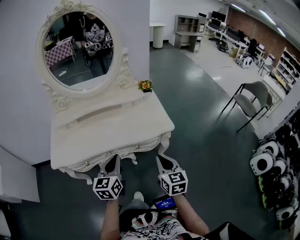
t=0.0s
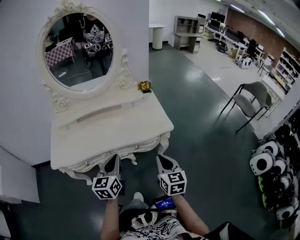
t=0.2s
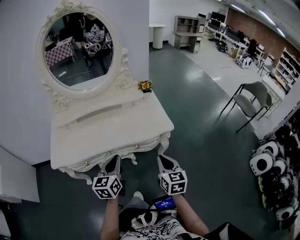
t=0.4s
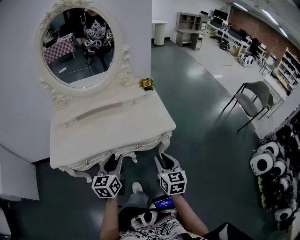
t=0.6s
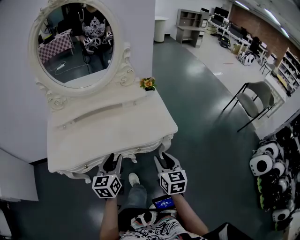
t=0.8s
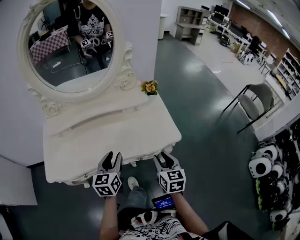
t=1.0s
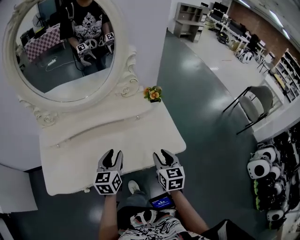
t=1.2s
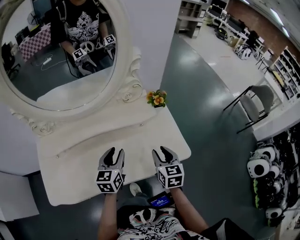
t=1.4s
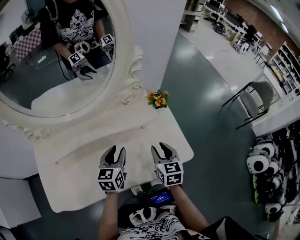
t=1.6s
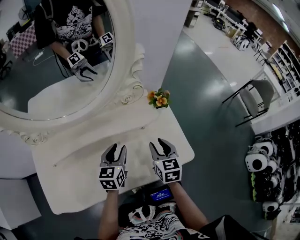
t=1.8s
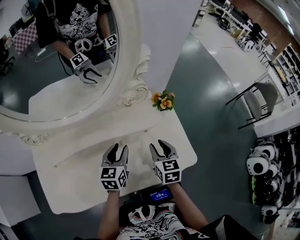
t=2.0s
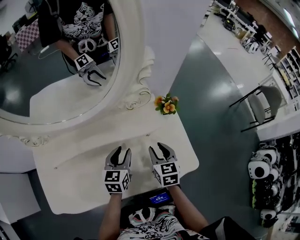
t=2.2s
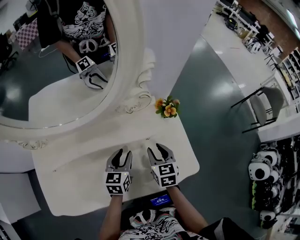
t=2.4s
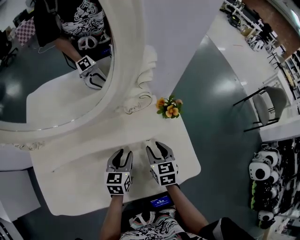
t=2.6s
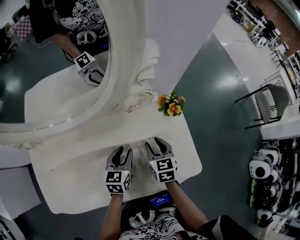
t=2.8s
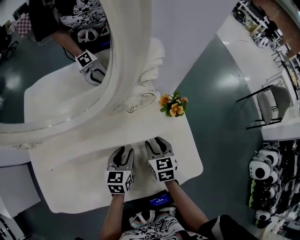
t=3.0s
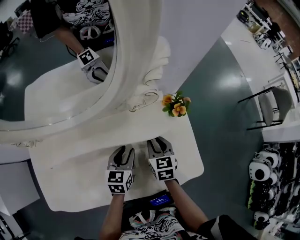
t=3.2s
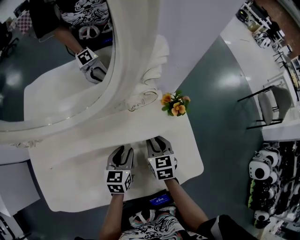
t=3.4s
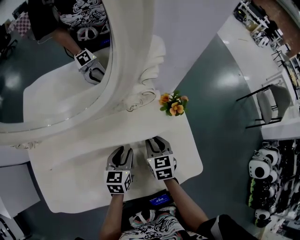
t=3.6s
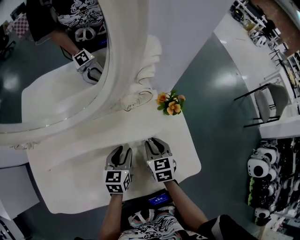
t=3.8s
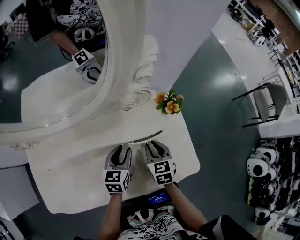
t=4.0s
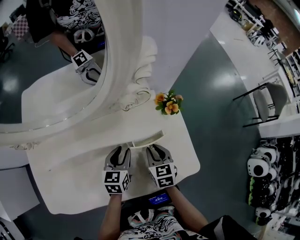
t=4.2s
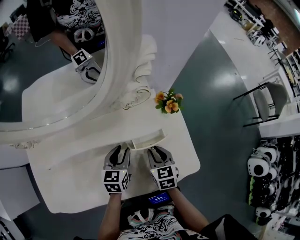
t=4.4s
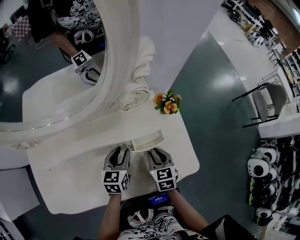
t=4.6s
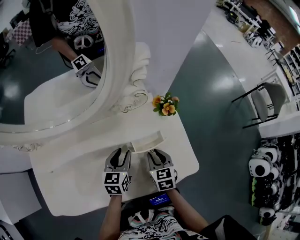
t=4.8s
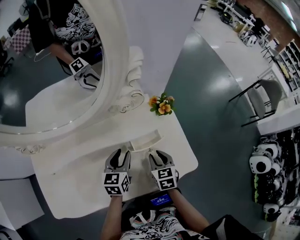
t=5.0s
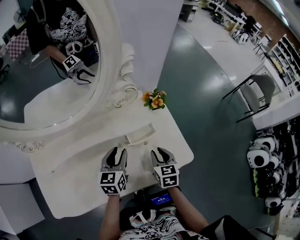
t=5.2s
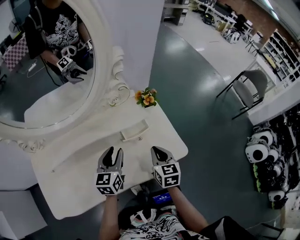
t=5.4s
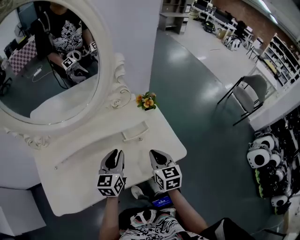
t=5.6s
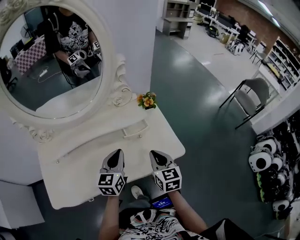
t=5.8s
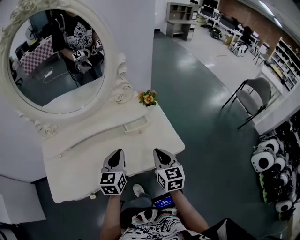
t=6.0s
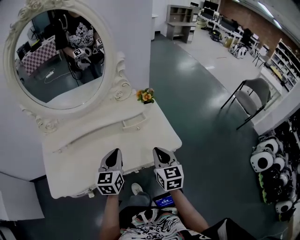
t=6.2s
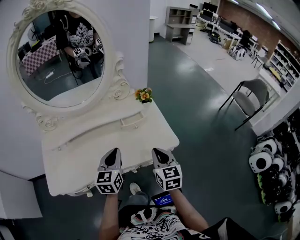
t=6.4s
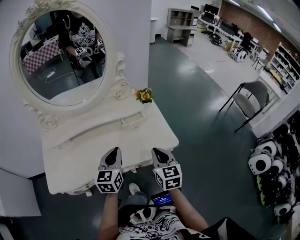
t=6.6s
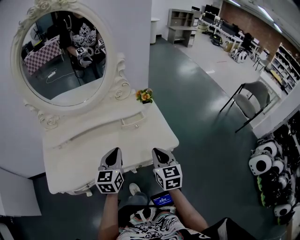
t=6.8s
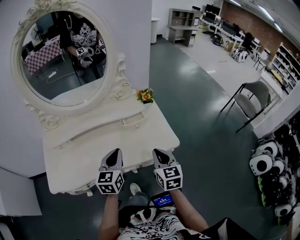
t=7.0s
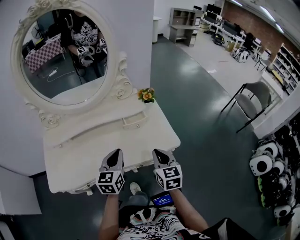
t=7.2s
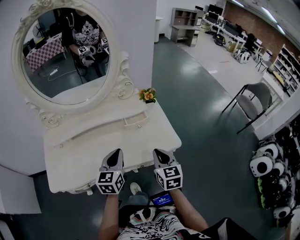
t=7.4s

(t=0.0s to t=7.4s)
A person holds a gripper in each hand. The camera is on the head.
t=0.0s - t=1.4s: Both grippers move forward, about 30 cm. The left gripper opens its fingers, while the right gripper opens.
t=1.4s - t=3.0s: Both grippers move forward and downward, roughly 20 cm.
t=3.0s - t=4.4s: The right gripper heads backward, covering about 5 cm.
t=4.4s - t=6.0s: Both grippers move upward and backward, roughly 25 cm. The right gripper swivels approximately 20 degrees, and closes its fingers; the left gripper closes its fingers.
t=6.0s - t=7.4s: The left gripper is displaced backward by some 5 cm.

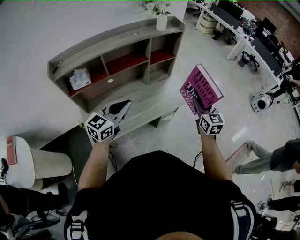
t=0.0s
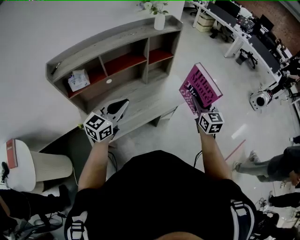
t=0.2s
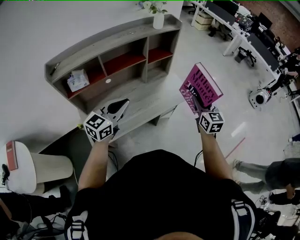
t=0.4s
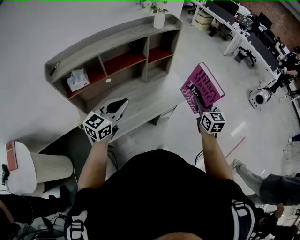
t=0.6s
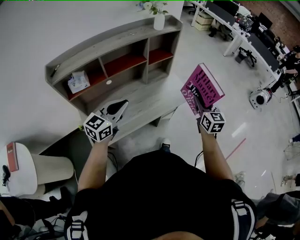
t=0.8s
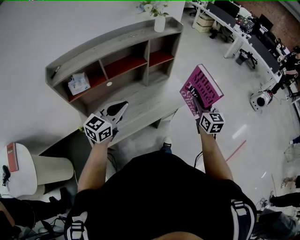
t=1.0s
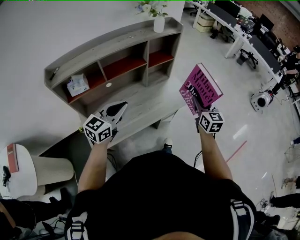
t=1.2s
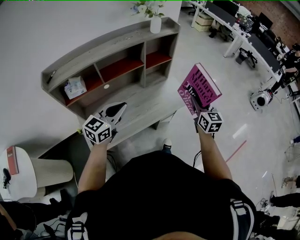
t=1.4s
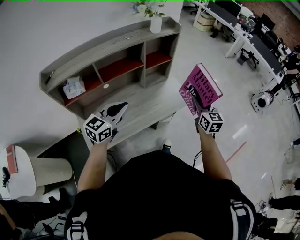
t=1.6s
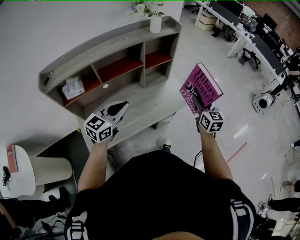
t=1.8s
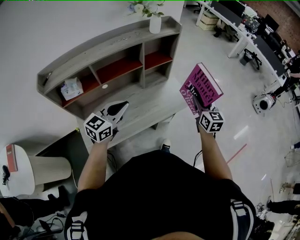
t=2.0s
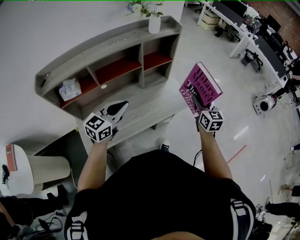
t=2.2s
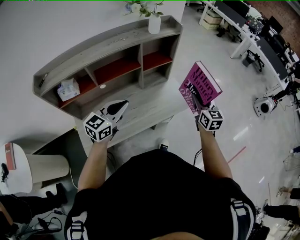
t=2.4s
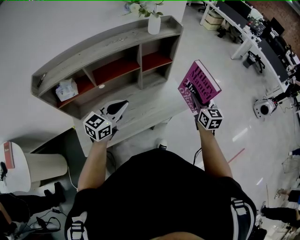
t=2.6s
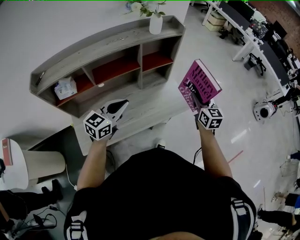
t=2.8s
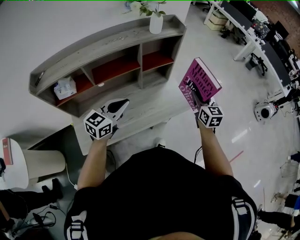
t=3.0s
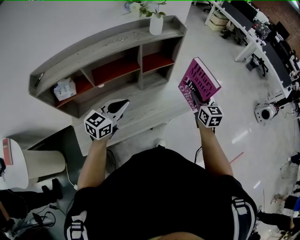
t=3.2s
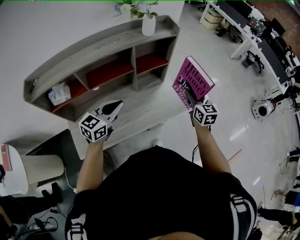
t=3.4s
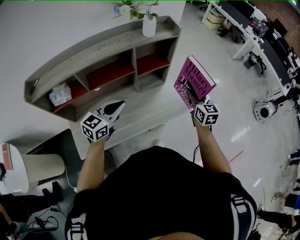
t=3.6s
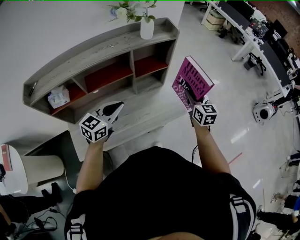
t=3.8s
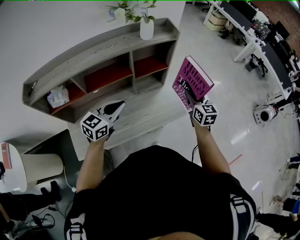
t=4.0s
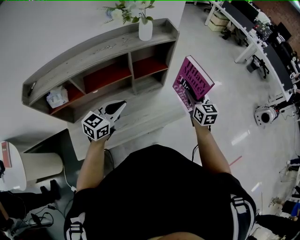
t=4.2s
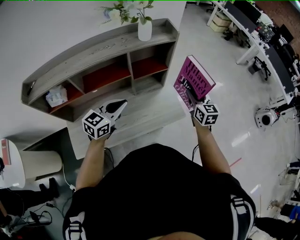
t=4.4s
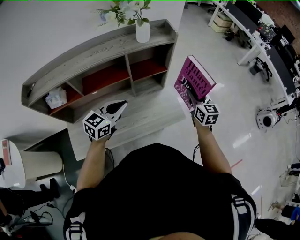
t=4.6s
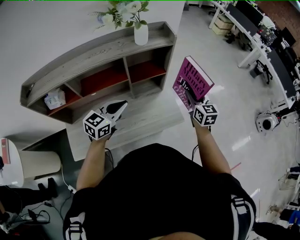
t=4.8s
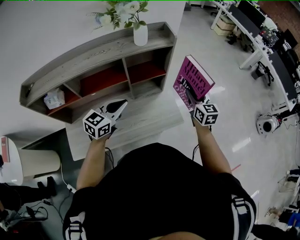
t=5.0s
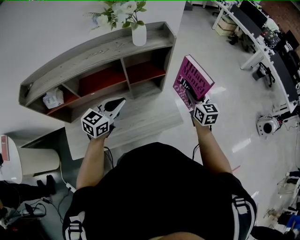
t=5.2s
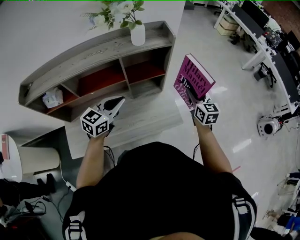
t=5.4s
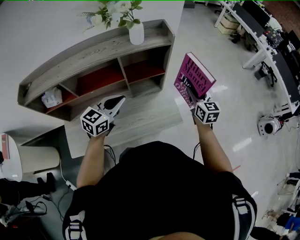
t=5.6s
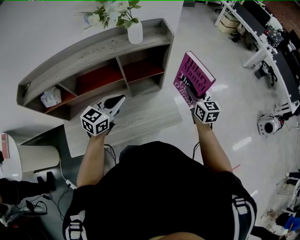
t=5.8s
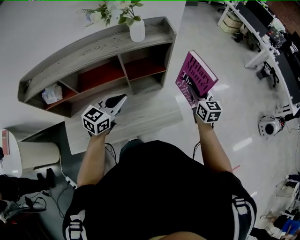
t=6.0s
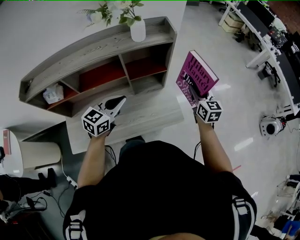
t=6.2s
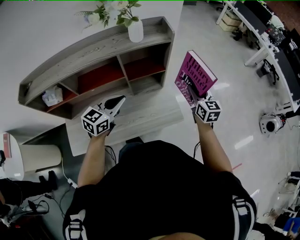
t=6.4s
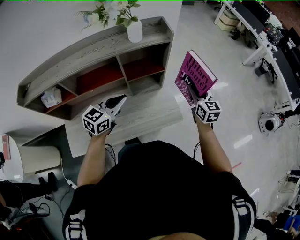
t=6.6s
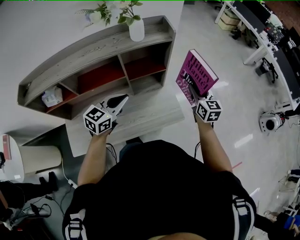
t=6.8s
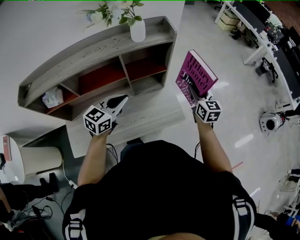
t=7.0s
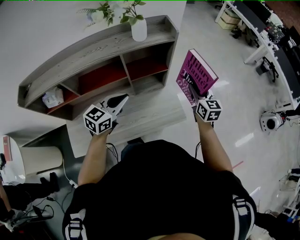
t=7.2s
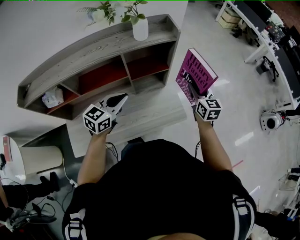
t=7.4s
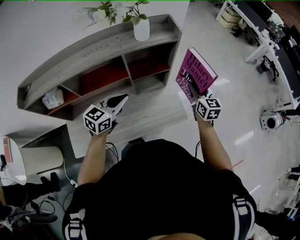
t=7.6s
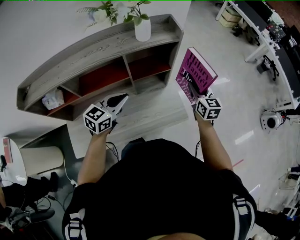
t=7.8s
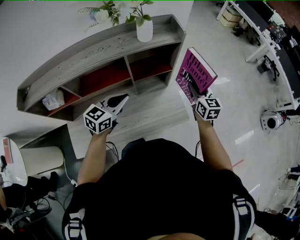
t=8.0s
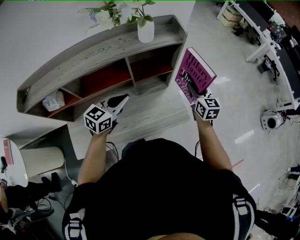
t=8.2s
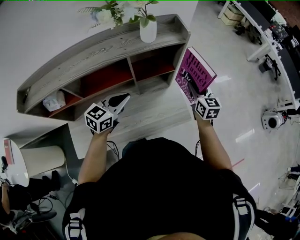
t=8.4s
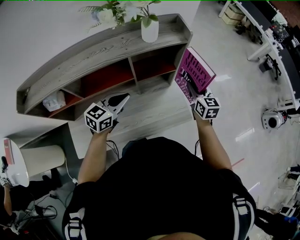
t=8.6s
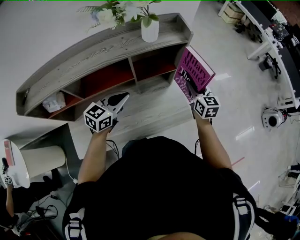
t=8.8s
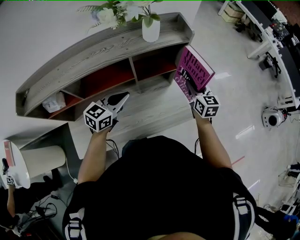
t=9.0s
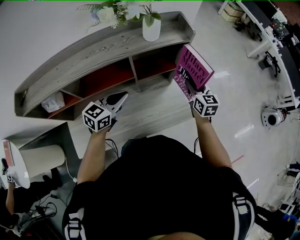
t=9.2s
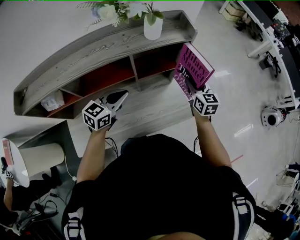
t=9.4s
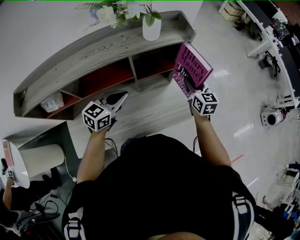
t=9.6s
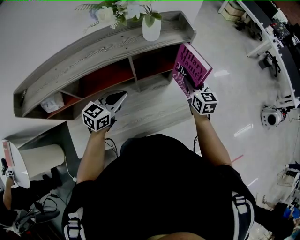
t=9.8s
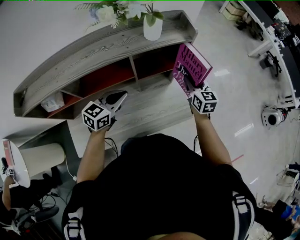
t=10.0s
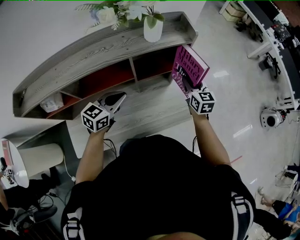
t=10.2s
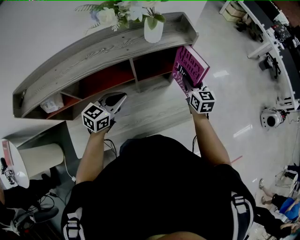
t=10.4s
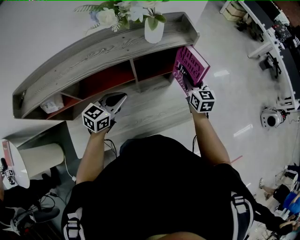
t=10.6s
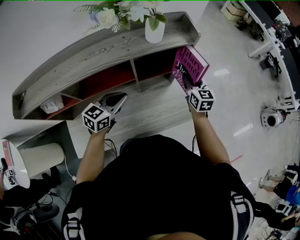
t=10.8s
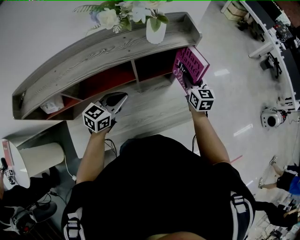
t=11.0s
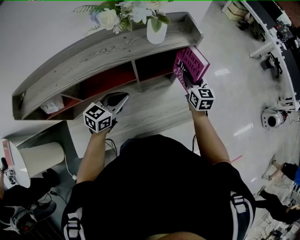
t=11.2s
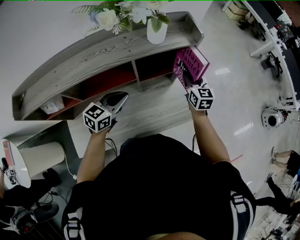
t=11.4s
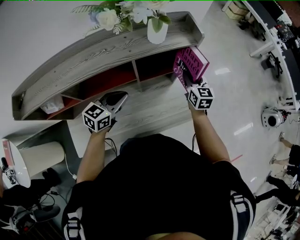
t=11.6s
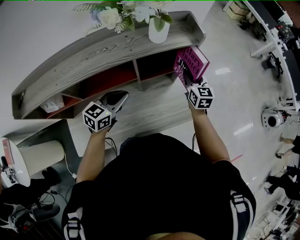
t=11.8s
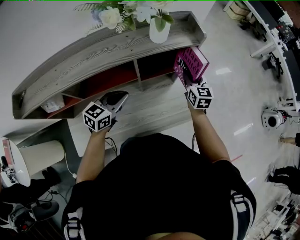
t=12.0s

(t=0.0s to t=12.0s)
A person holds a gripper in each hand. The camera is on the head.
t=0.0s - t=1.6s: The grippers both shift forward by about 5 cm.
t=1.6s - t=3.0s: The two grippers go about 10 cm forward.
t=3.0s - t=4.4s: Both grippers move forward, roughly 10 cm.
t=4.4s - t=6.0s: The two grippers go about 5 cm forward.
t=6.0s - t=7.6s: The grippers stay close to where they were, moving slightly.
t=7.6s - t=9.0s: The right gripper shifts some 5 cm to the left, while the left gripper changes place by some 5 cm.
t=9.0s - t=10.4s: The grippers stay close to where they were, moving slightly.
t=10.4s - t=12.0s: There are only small adjustments of the grippers.

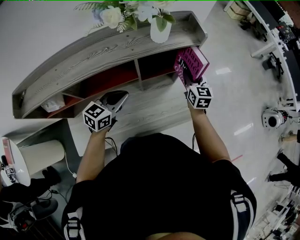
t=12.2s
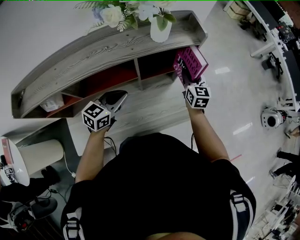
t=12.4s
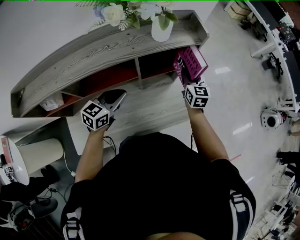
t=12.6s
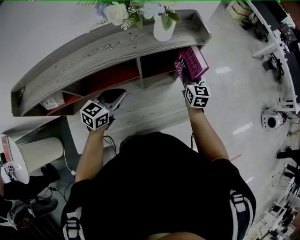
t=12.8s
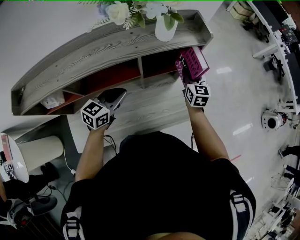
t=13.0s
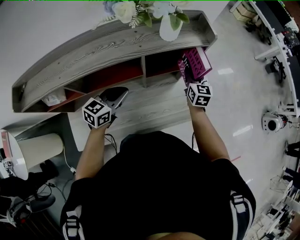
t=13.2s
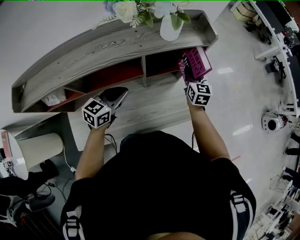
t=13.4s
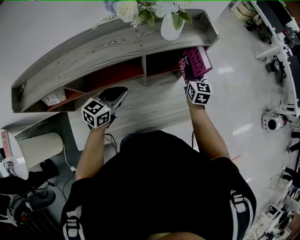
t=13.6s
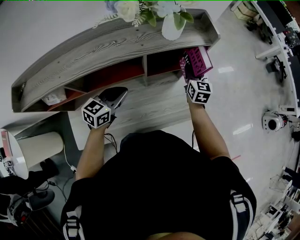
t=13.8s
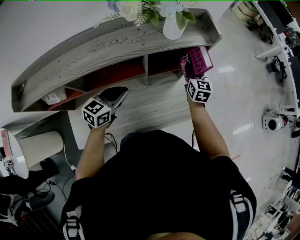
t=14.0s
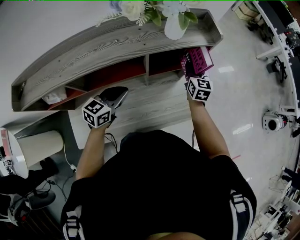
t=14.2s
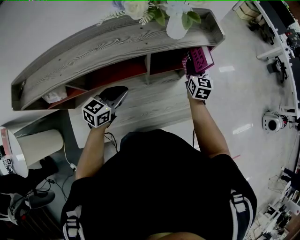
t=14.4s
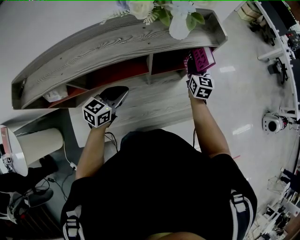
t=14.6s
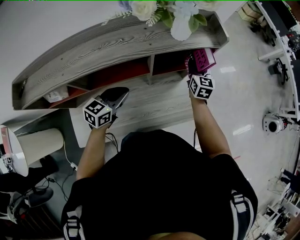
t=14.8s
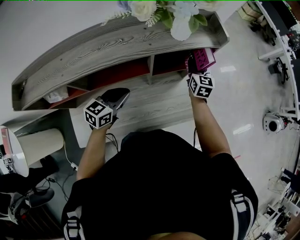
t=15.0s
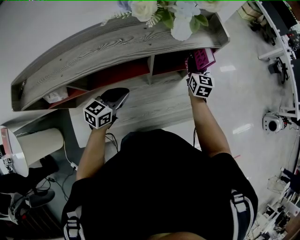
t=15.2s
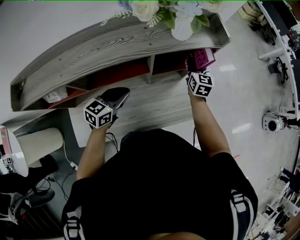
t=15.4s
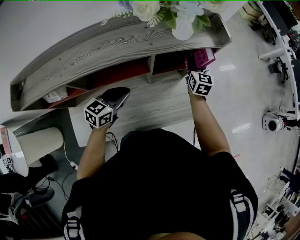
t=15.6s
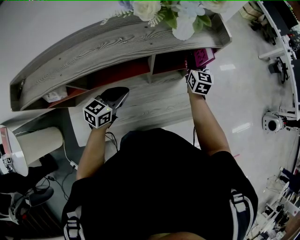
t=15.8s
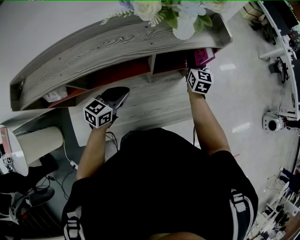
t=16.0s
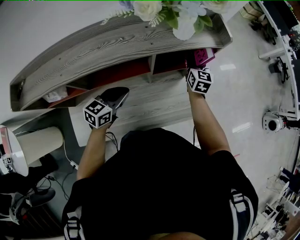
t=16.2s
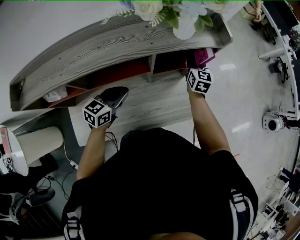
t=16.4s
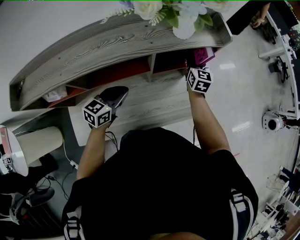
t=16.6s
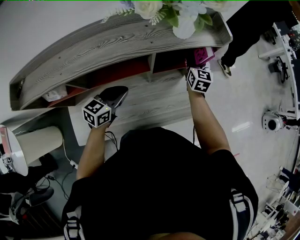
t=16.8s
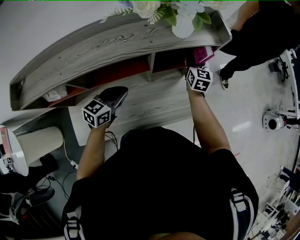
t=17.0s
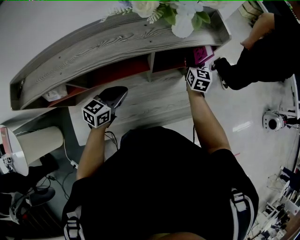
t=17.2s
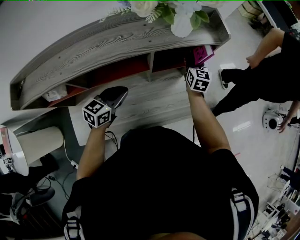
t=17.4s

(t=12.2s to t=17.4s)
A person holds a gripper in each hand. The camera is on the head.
t=12.2s - t=14.0s: There are only small adjustments of the grippers.
t=14.0s - t=17.4s: There are only small adjustments of the grippers.
